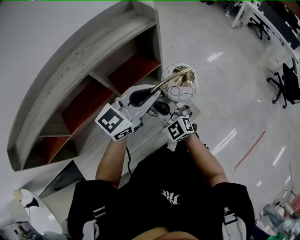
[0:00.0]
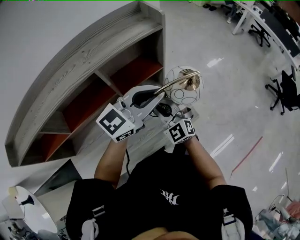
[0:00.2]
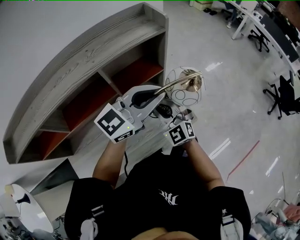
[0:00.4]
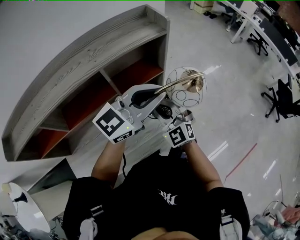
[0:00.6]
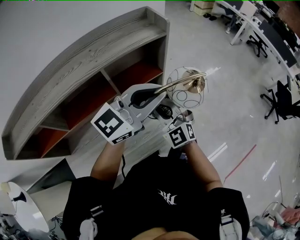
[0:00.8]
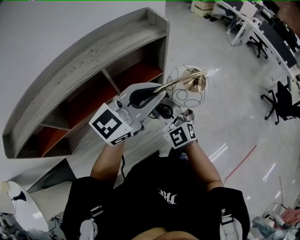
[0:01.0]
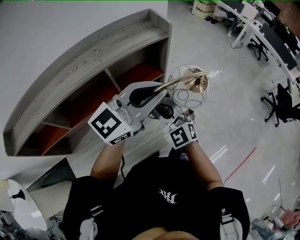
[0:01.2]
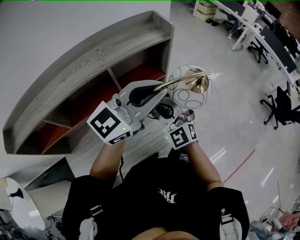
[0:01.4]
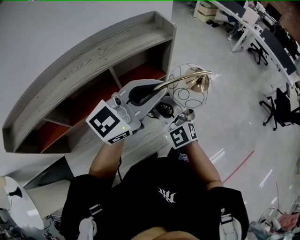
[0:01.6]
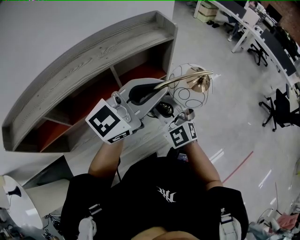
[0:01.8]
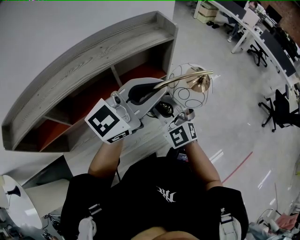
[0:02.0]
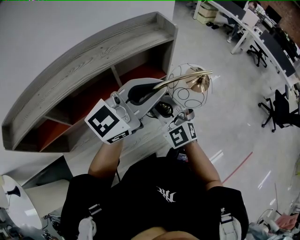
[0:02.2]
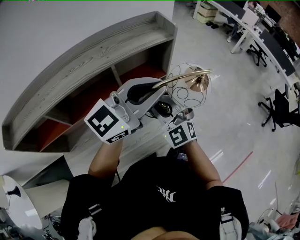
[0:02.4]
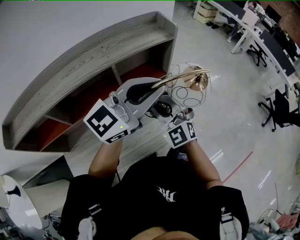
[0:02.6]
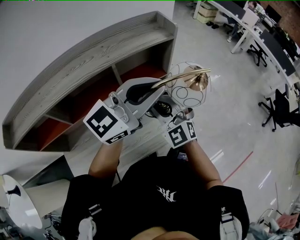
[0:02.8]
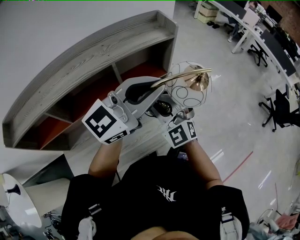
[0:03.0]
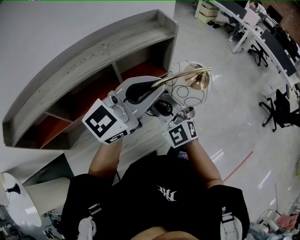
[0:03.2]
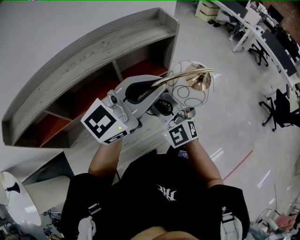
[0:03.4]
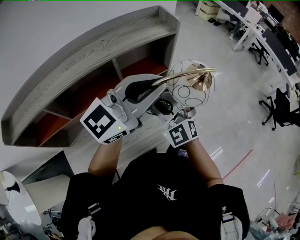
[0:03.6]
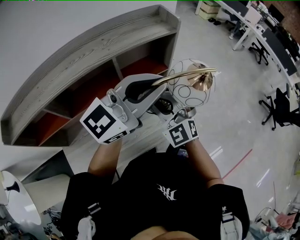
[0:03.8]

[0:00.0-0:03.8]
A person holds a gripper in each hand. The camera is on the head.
0:00.0 to 0:01.2: Both grippers move upward, about 10 cm.
0:01.2 to 0:02.6: The grippers move only a little.
0:02.6 to 0:03.8: Both grippers stay put.

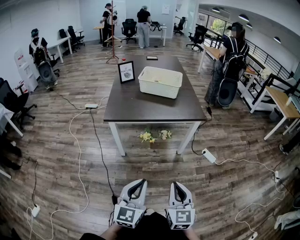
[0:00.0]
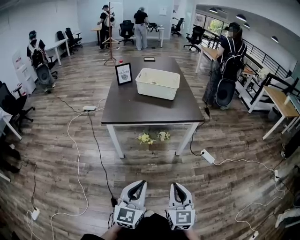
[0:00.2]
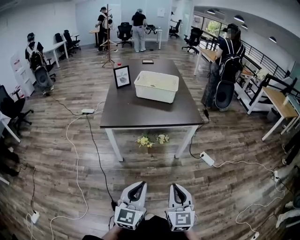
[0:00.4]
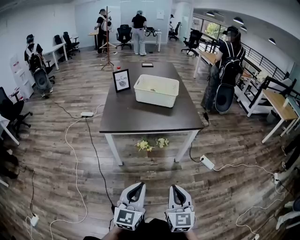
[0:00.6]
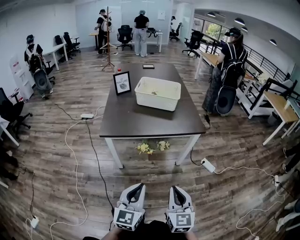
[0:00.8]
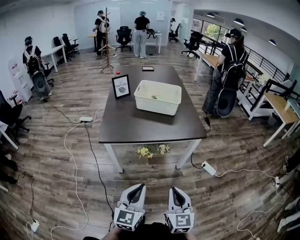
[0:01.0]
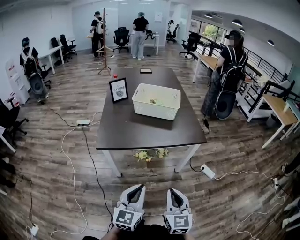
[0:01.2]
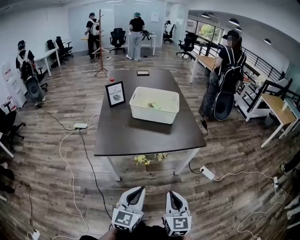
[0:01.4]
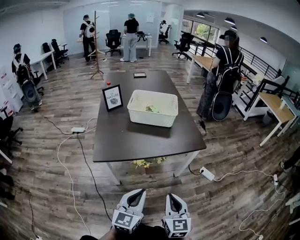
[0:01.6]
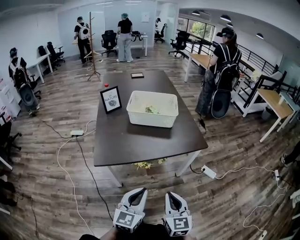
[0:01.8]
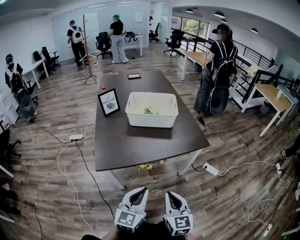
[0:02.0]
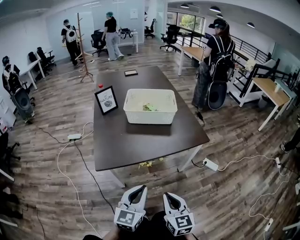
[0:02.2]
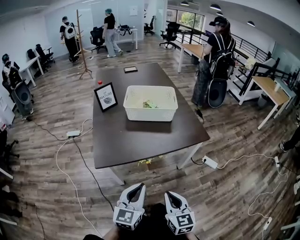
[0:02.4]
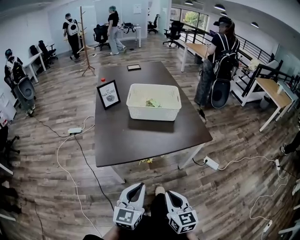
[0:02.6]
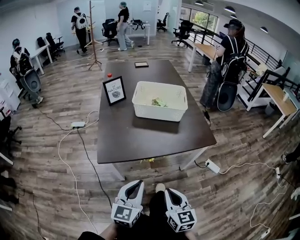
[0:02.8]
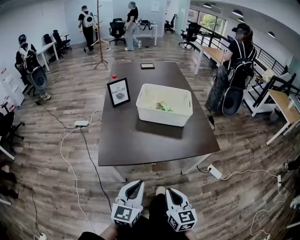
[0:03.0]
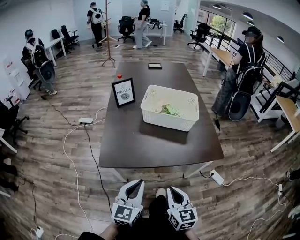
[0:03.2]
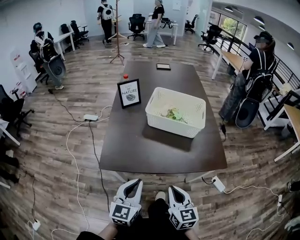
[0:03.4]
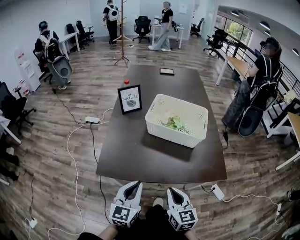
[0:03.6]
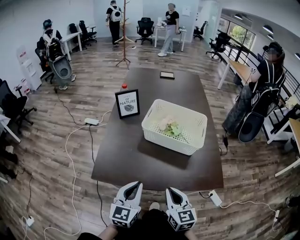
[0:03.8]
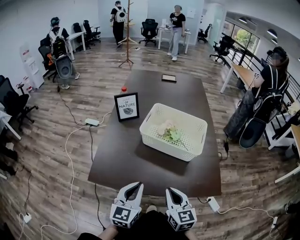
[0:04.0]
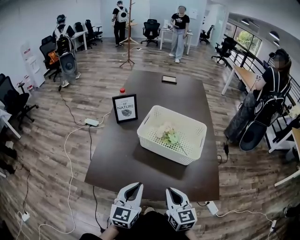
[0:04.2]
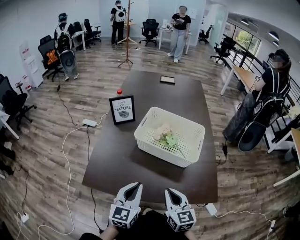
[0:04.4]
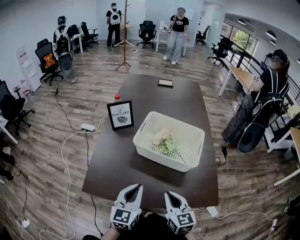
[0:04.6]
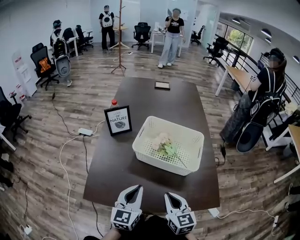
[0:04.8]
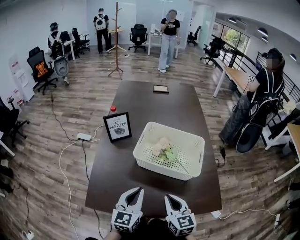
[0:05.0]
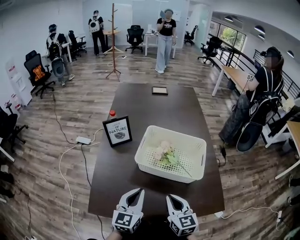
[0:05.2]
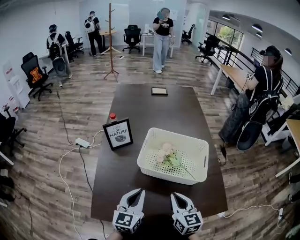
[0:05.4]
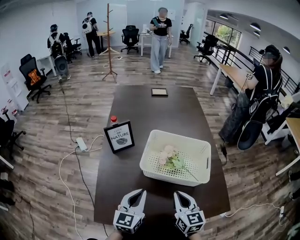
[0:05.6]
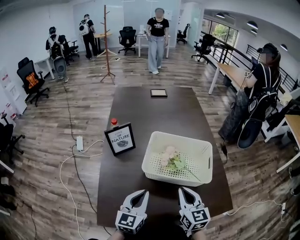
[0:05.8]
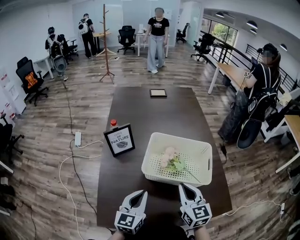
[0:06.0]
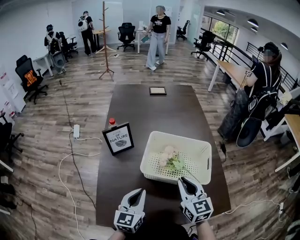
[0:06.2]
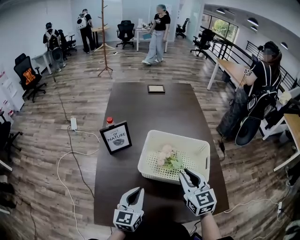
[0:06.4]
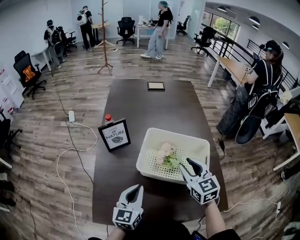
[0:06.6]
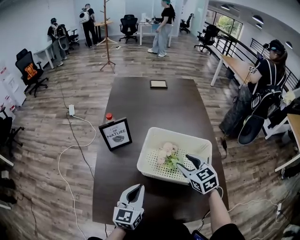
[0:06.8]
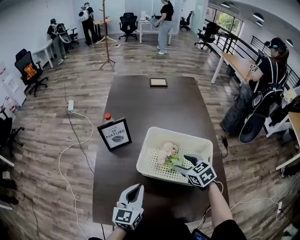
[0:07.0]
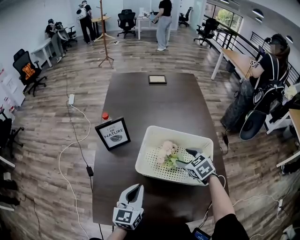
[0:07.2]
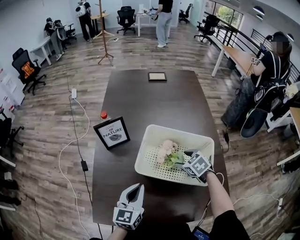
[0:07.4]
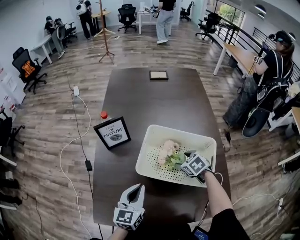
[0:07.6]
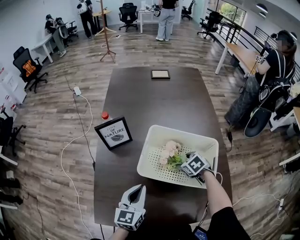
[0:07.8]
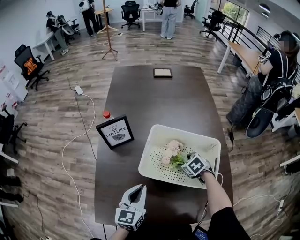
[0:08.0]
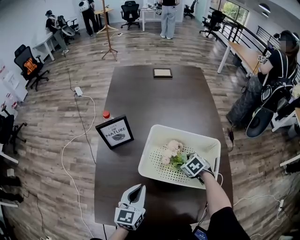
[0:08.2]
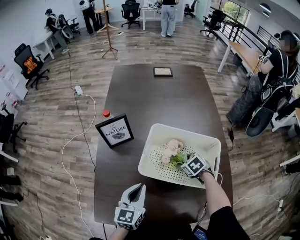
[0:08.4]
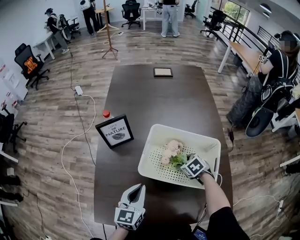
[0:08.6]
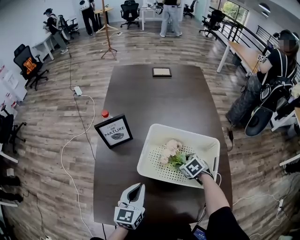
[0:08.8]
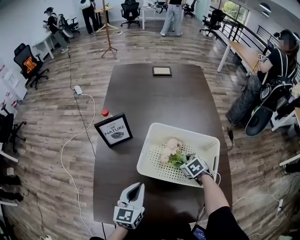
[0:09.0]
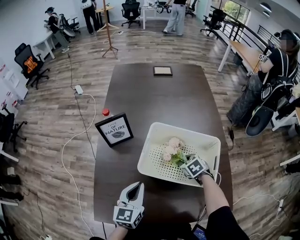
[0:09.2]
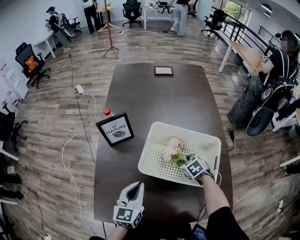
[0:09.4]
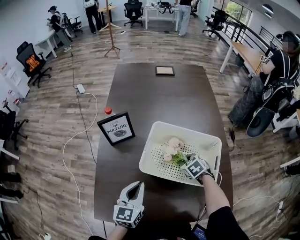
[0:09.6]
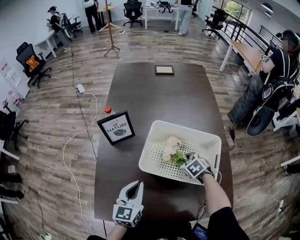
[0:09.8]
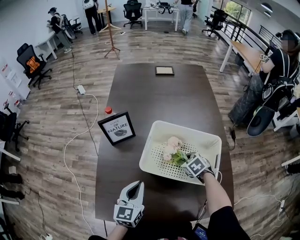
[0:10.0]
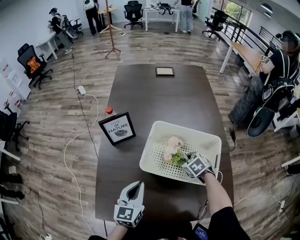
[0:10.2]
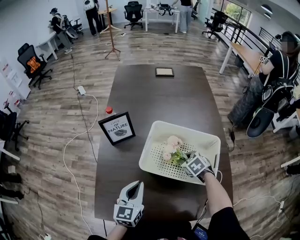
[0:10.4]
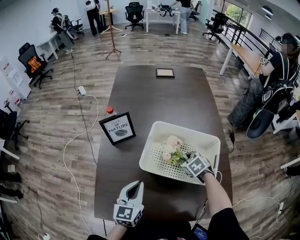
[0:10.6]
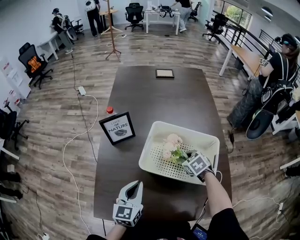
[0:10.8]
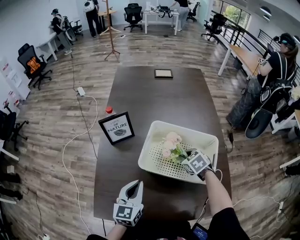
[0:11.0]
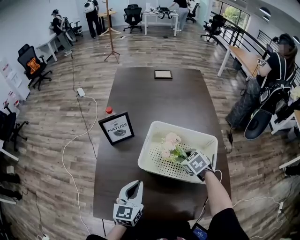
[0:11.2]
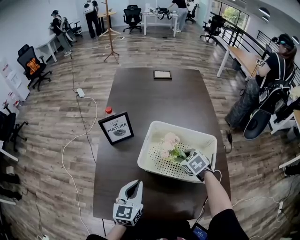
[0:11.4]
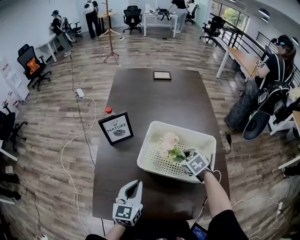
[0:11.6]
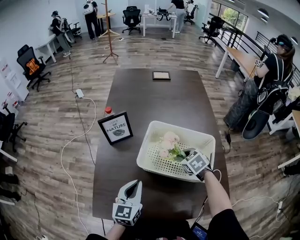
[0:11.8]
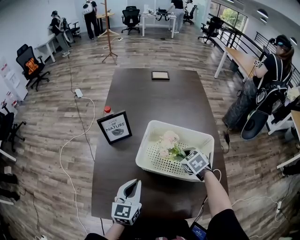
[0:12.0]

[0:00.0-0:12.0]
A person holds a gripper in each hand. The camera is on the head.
0:00.0 to 0:01.6: The grippers both shift forward by approximately 20 cm.
0:01.6 to 0:03.0: Both grippers move forward and to the left, about 10 cm.
0:03.0 to 0:04.4: Both grippers travel together forward, roughly 25 cm.
0:04.4 to 0:06.0: The right gripper travels forward by roughly 15 cm. The left gripper is displaced forward and to the left by approximately 15 cm.
0:06.0 to 0:07.6: The left gripper moves approximately 5 cm; the right gripper travels downward and forward by roughly 25 cm, tips its fingers downward by approximately 50 degrees, and opens up.
0:07.6 to 0:09.0: The right gripper closes up.
0:09.0 to 0:10.4: The right gripper closes up.
0:10.4 to 0:12.0: The right gripper moves upward, roughly 5 cm.

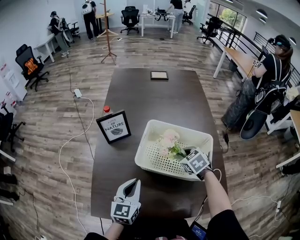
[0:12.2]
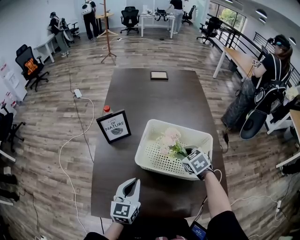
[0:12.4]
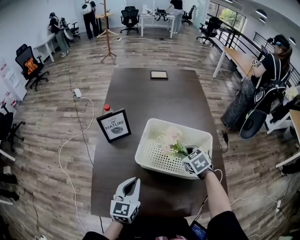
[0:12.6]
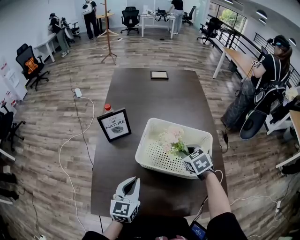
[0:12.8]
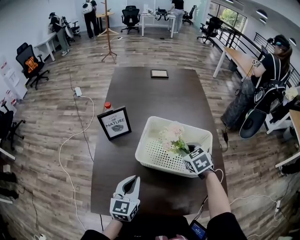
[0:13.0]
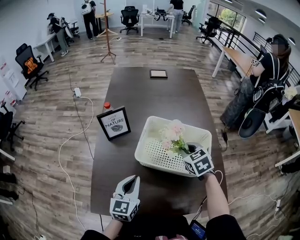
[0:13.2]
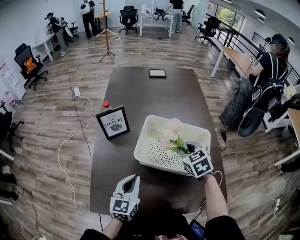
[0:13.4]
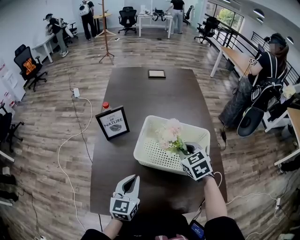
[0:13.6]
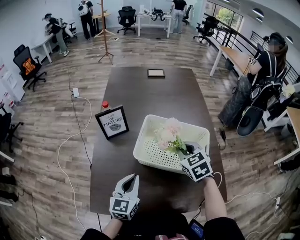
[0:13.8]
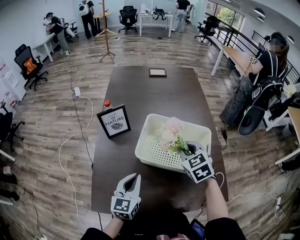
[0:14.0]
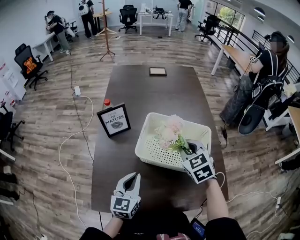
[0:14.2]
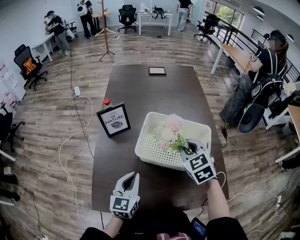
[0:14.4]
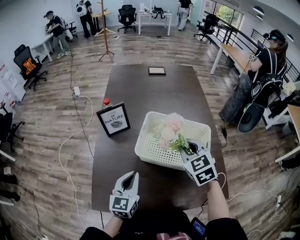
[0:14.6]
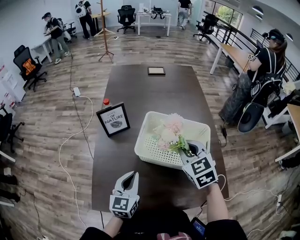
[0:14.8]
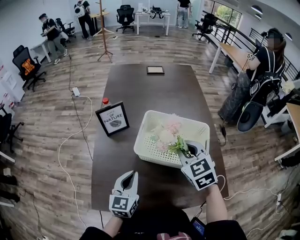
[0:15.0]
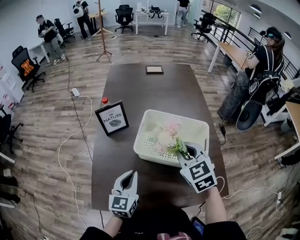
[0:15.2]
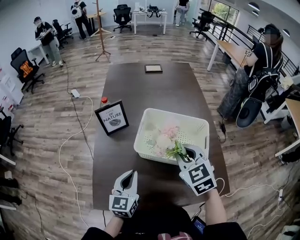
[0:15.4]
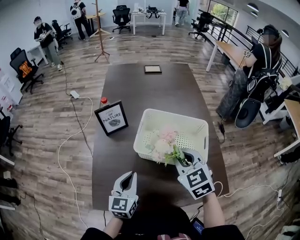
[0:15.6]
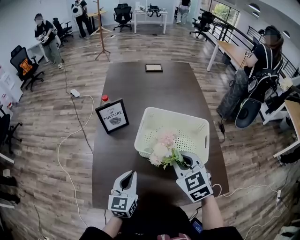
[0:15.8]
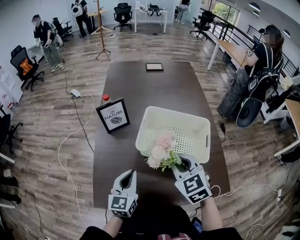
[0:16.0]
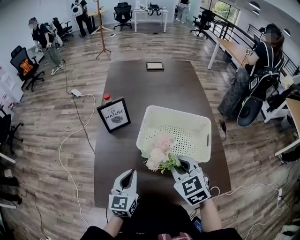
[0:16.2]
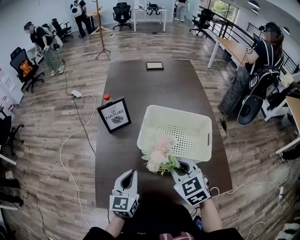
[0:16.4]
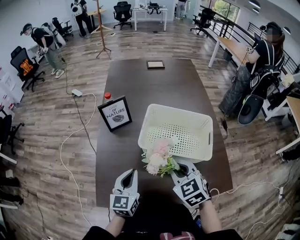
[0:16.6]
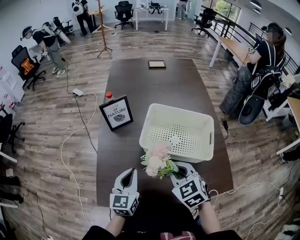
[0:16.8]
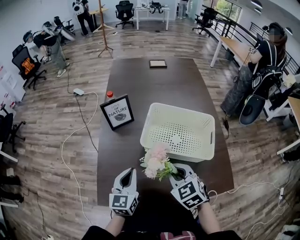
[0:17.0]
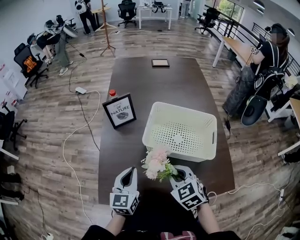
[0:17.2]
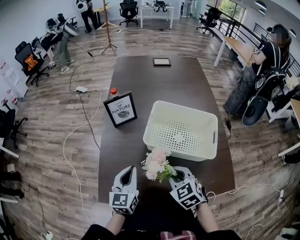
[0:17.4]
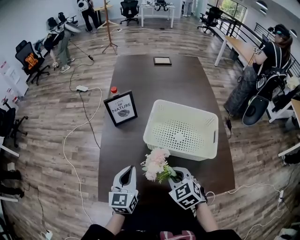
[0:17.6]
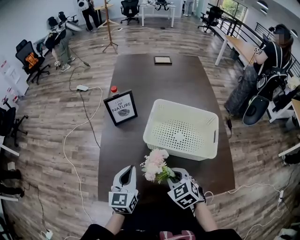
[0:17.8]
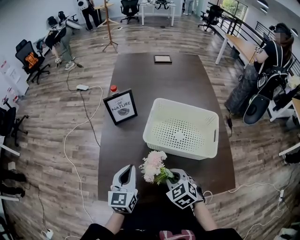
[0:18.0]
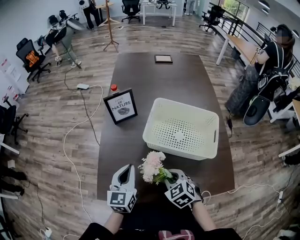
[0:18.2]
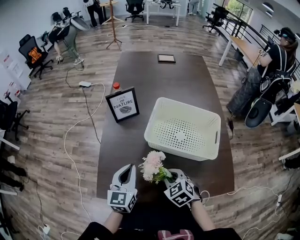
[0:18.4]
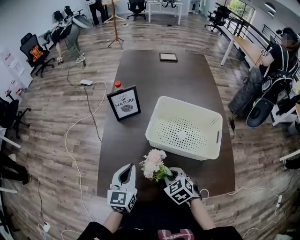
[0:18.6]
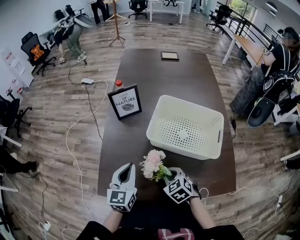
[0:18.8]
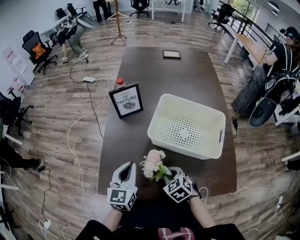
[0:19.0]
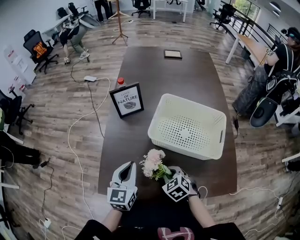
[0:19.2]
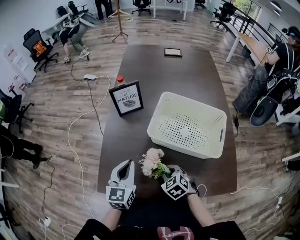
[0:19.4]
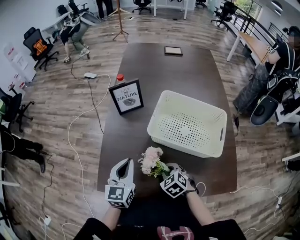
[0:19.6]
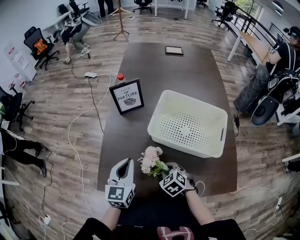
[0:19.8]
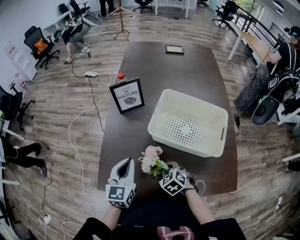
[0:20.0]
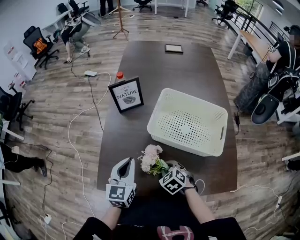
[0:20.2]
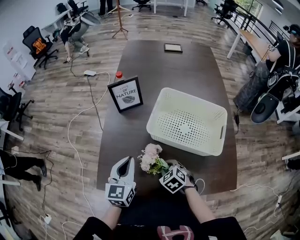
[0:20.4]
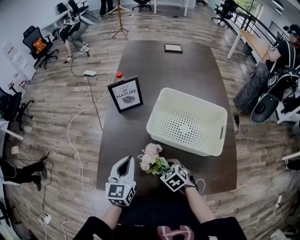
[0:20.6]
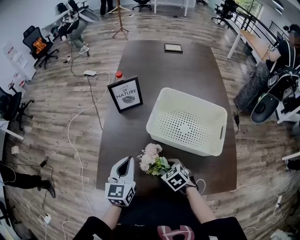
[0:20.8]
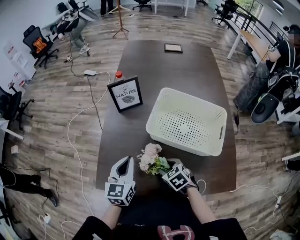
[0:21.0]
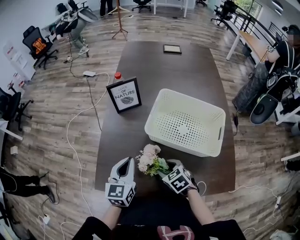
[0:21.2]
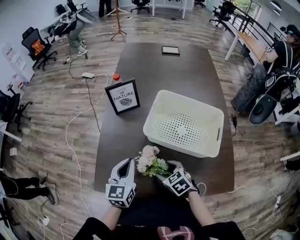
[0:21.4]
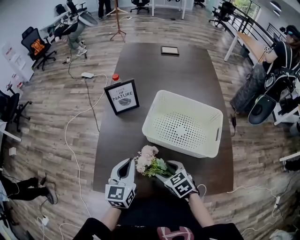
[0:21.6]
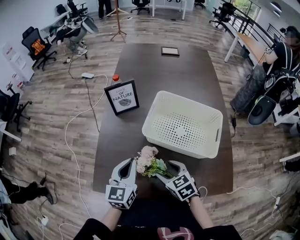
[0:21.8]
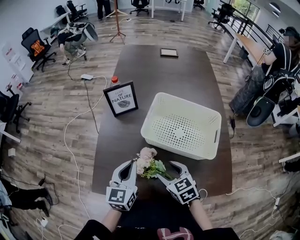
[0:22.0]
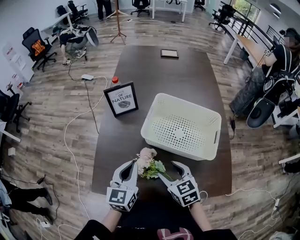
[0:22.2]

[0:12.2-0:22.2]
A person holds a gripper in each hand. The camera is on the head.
0:12.2 to 0:13.6: The right gripper shifts roughly 10 cm upward.
0:13.6 to 0:15.0: The right gripper travels upward and backward by roughly 10 cm.
0:15.0 to 0:16.4: The right gripper travels backward by some 10 cm.
0:16.4 to 0:18.0: The right gripper goes some 10 cm downward.
0:18.0 to 0:19.4: The right gripper shifts about 10 cm downward.
0:19.4 to 0:20.8: The right gripper opens.
0:20.8 to 0:22.2: The right gripper shifts roughly 10 cm upward, swivels approximately 20 degrees, and opens up.
